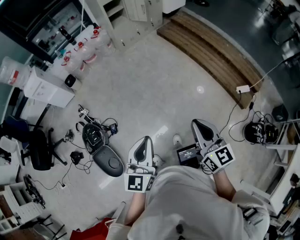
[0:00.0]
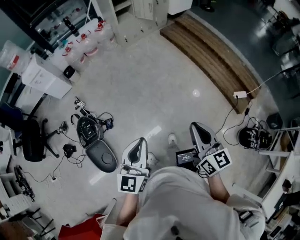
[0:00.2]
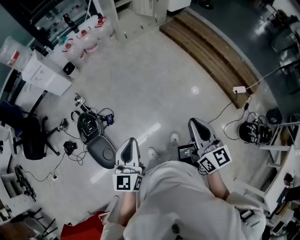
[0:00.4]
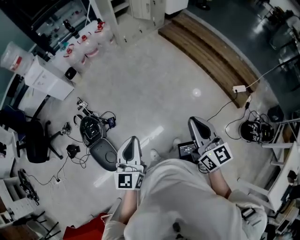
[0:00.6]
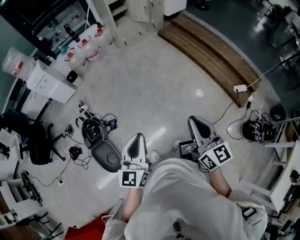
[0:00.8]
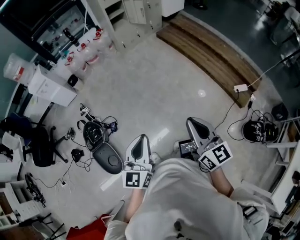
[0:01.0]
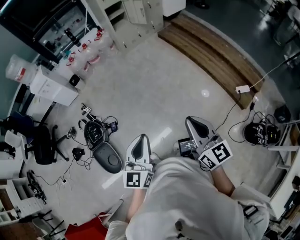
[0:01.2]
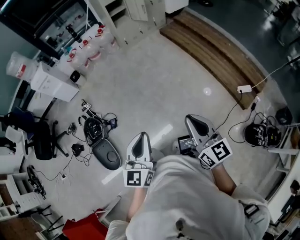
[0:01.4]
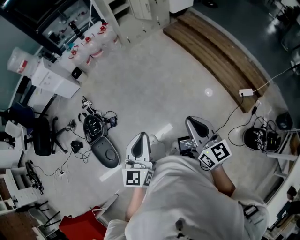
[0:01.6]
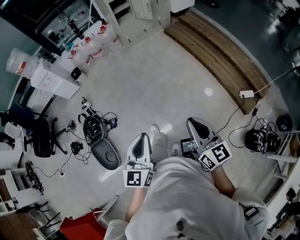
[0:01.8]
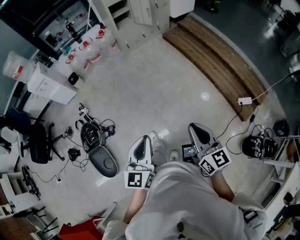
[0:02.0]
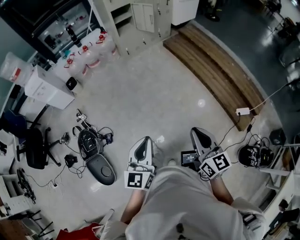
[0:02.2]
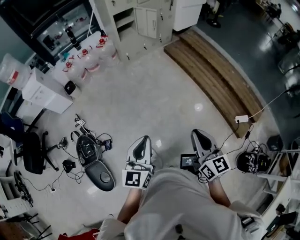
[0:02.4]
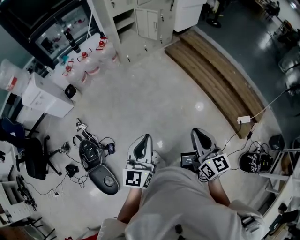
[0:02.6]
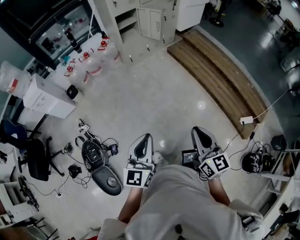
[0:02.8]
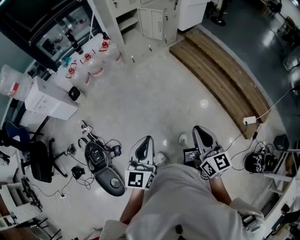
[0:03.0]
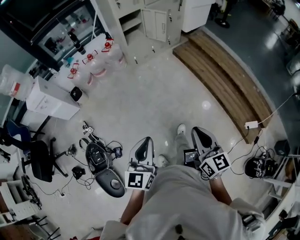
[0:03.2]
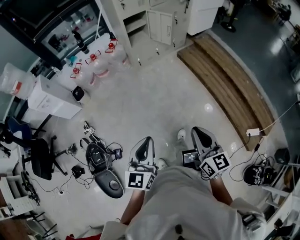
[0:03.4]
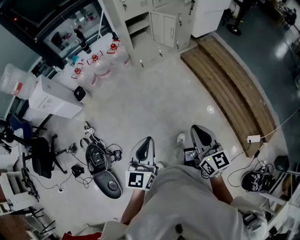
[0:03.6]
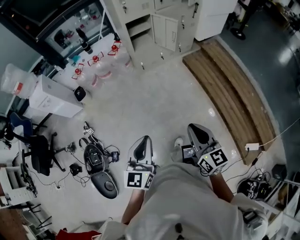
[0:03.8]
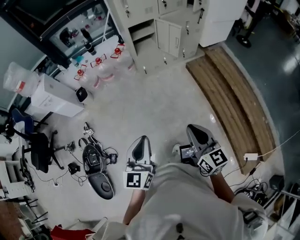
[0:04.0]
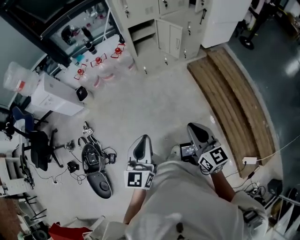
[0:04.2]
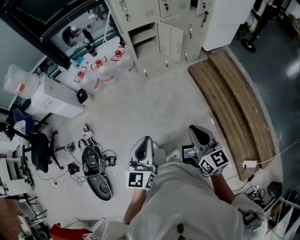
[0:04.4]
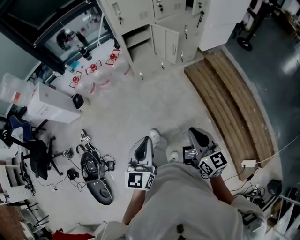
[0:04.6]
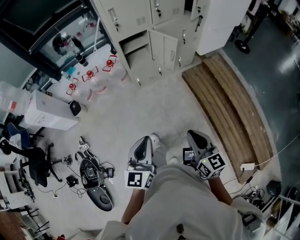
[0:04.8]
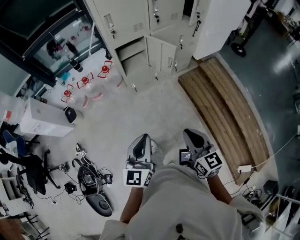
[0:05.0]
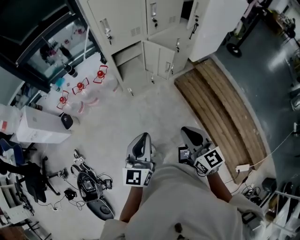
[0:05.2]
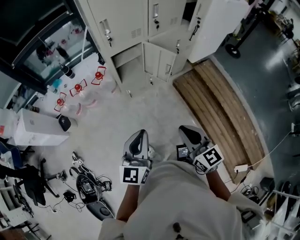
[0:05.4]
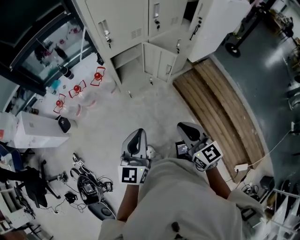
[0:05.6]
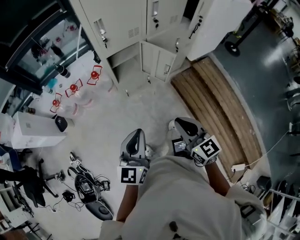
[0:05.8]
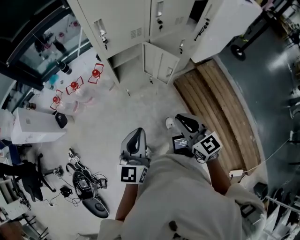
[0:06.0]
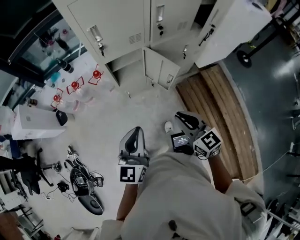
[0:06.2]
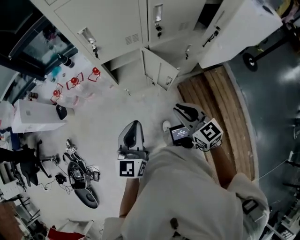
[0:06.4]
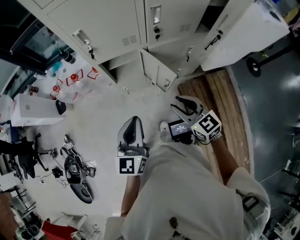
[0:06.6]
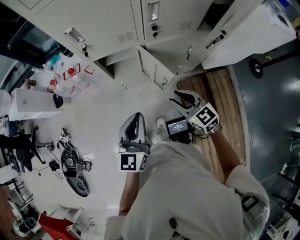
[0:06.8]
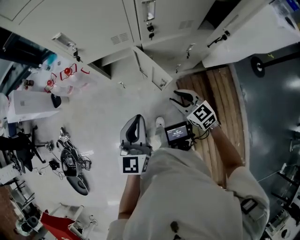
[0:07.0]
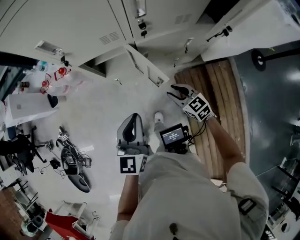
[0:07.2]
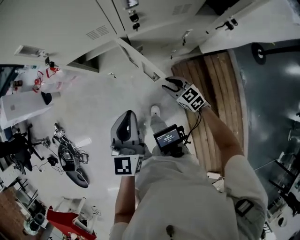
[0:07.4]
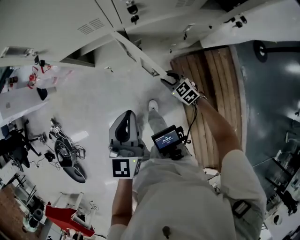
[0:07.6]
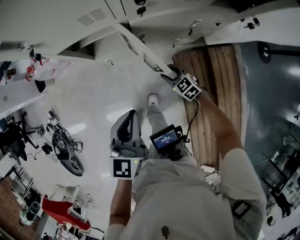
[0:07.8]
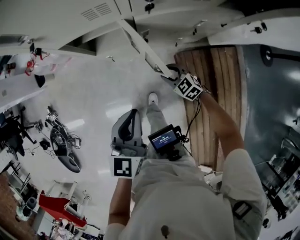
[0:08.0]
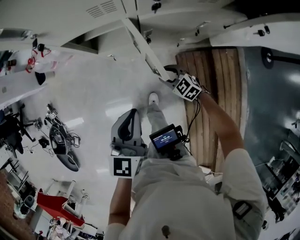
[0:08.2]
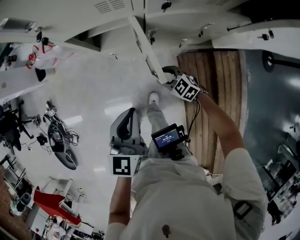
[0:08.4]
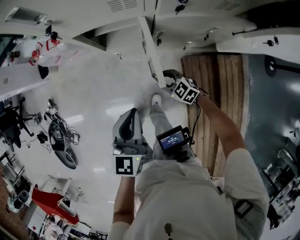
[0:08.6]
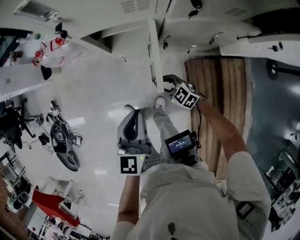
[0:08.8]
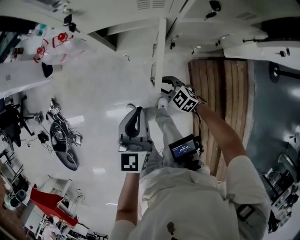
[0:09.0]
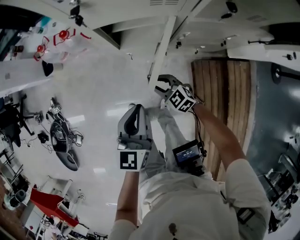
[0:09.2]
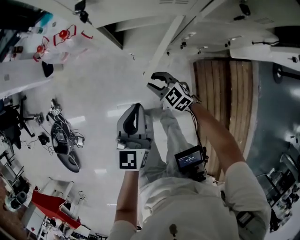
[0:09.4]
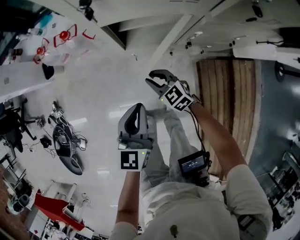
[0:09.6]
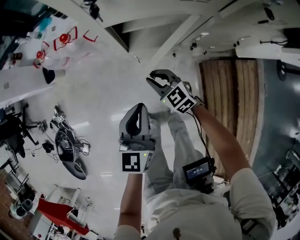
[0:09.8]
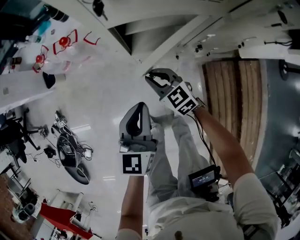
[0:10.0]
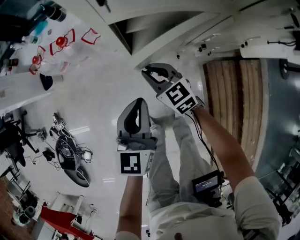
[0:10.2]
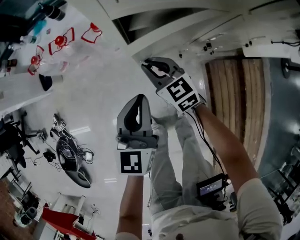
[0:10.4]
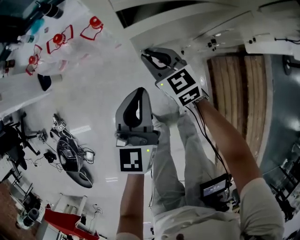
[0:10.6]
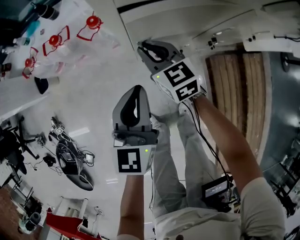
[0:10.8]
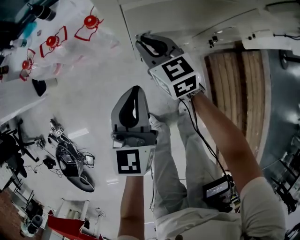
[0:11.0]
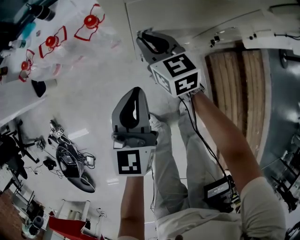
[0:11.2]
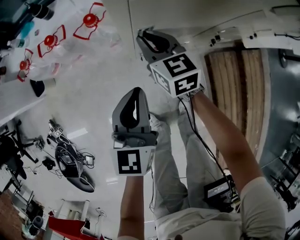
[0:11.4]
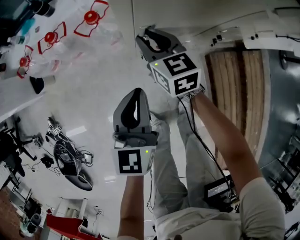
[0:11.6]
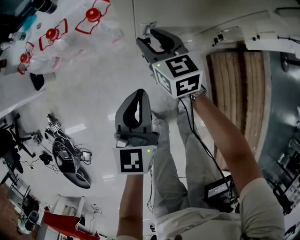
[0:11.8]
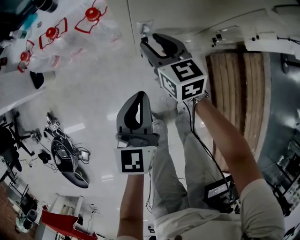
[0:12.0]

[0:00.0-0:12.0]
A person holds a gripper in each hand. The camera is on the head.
0:00.0 to 0:01.6: The right gripper moves to the right, approximately 5 cm; the left gripper moves roughly 15 cm to the left and comes back.
0:01.6 to 0:03.0: The two grippers go some 30 cm forward.
0:03.0 to 0:04.4: The grippers both shift forward and to the right by about 30 cm.
0:04.4 to 0:06.0: The grippers both shift forward by some 35 cm.
0:06.0 to 0:07.6: The left gripper travels to the right, forward and downward by about 30 cm, while the right gripper heads downward, forward and to the right, covering approximately 50 cm, turns by some 40 degrees, and opens.
0:07.6 to 0:09.0: The left gripper moves to the left and downward, some 10 cm, while the right gripper shifts some 15 cm to the left.
0:09.0 to 0:10.4: The right gripper travels forward and to the left by roughly 25 cm, and rotates about 30 degrees, while the left gripper is displaced forward, downward and to the left by some 20 cm.
0:10.4 to 0:12.0: The left gripper moves downward, about 5 cm, while the right gripper opens up.

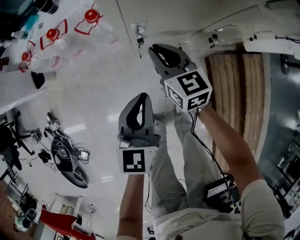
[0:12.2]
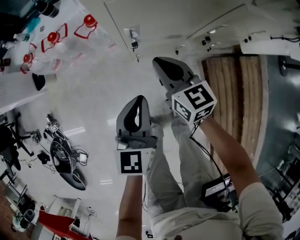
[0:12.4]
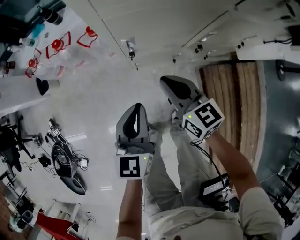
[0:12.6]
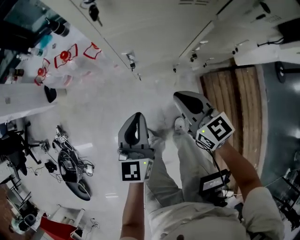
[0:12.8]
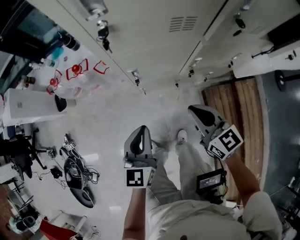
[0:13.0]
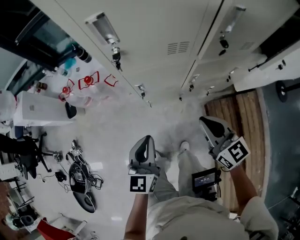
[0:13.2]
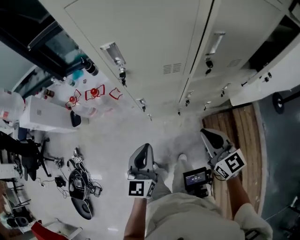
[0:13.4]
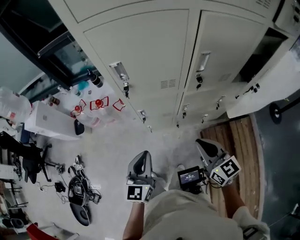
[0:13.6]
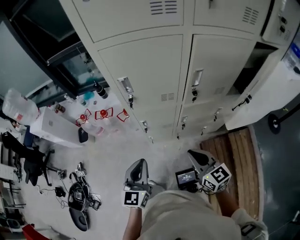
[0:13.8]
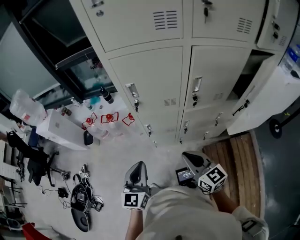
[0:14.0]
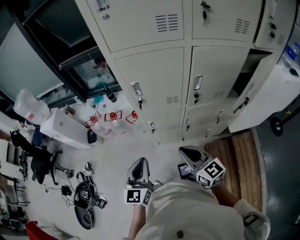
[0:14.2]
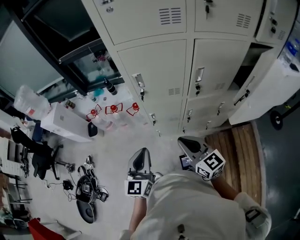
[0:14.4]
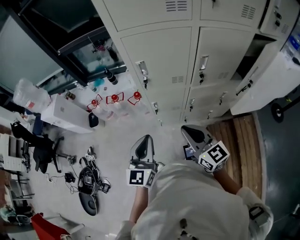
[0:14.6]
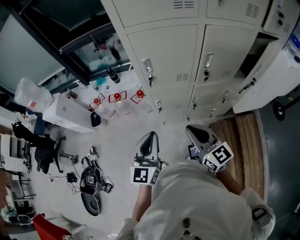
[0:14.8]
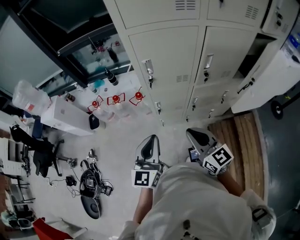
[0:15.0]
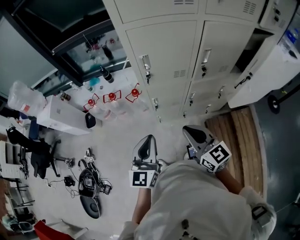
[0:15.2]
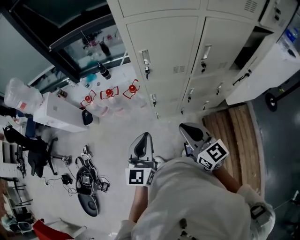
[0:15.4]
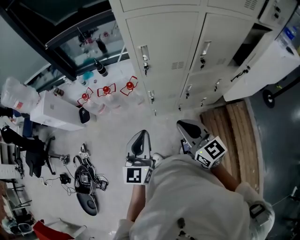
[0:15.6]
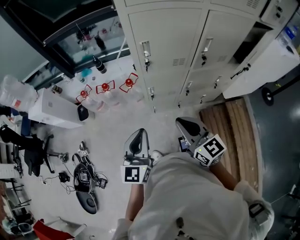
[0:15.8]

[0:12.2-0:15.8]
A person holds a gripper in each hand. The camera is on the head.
0:12.2 to 0:14.0: The two grippers go about 40 cm upward and backward. The right gripper changes its angle by some 20 degrees.
0:14.0 to 0:15.8: The right gripper travels to the left by some 15 cm. The left gripper goes roughly 10 cm to the left.

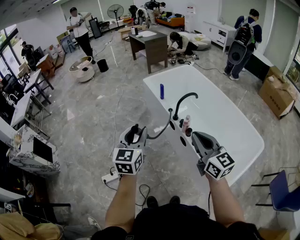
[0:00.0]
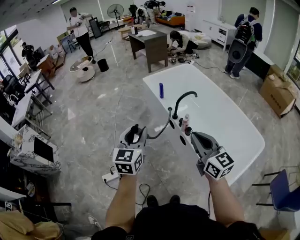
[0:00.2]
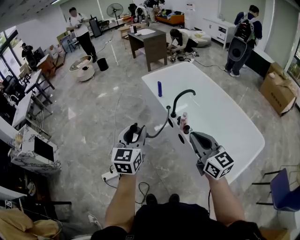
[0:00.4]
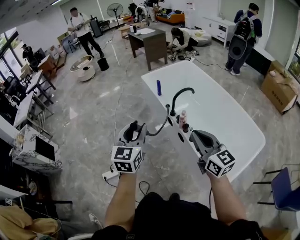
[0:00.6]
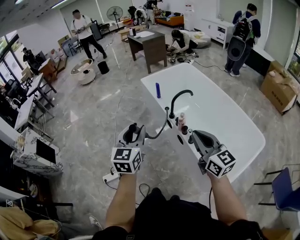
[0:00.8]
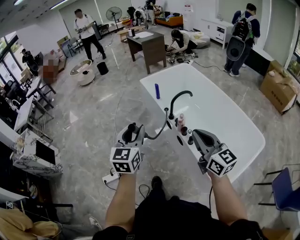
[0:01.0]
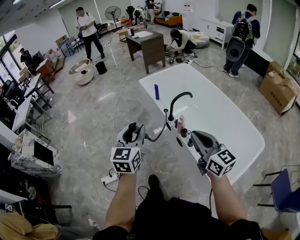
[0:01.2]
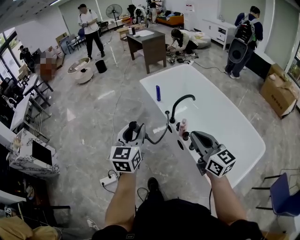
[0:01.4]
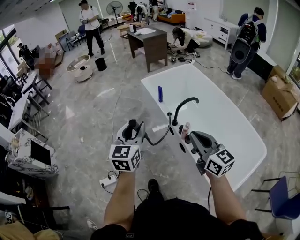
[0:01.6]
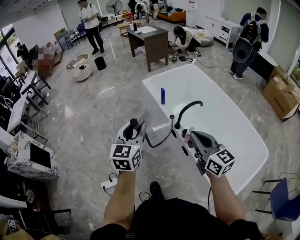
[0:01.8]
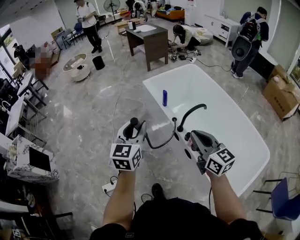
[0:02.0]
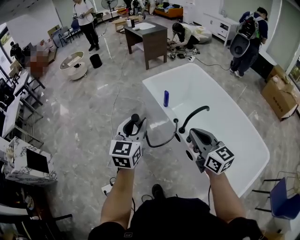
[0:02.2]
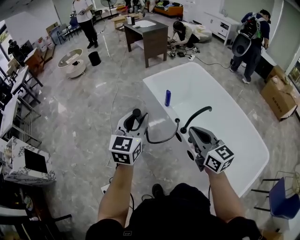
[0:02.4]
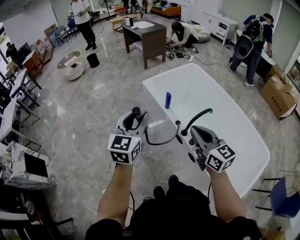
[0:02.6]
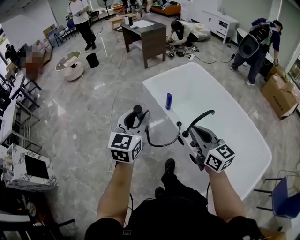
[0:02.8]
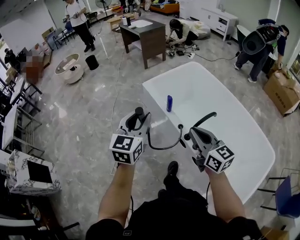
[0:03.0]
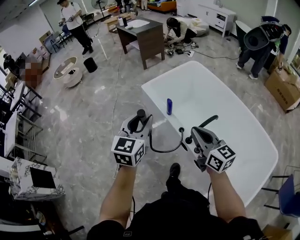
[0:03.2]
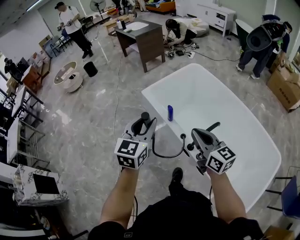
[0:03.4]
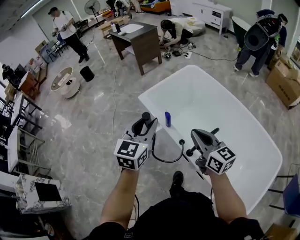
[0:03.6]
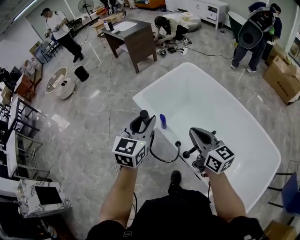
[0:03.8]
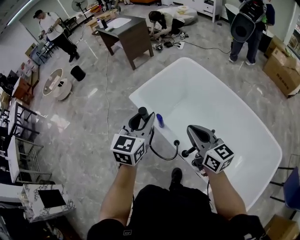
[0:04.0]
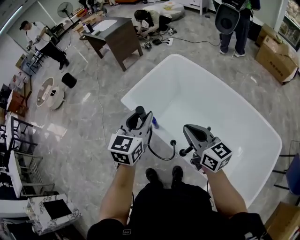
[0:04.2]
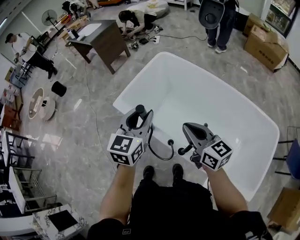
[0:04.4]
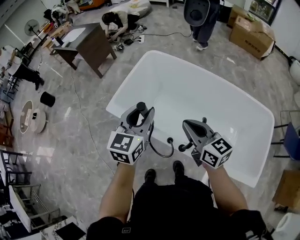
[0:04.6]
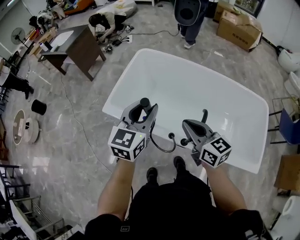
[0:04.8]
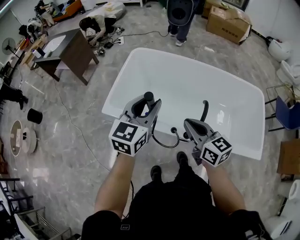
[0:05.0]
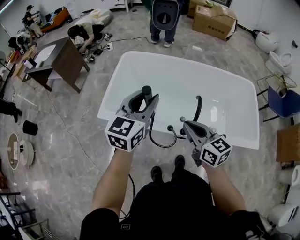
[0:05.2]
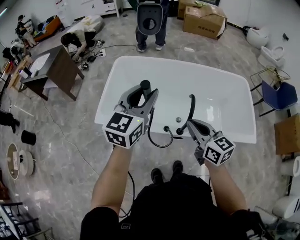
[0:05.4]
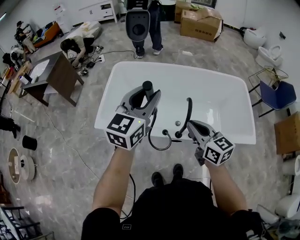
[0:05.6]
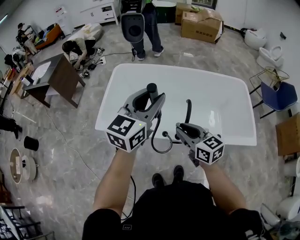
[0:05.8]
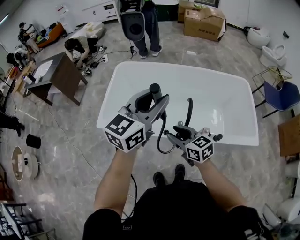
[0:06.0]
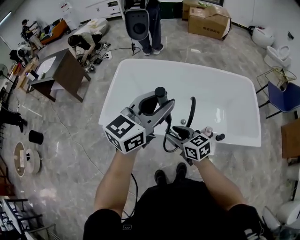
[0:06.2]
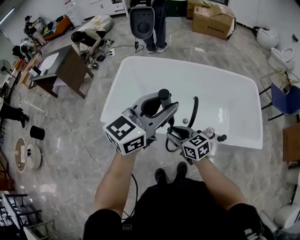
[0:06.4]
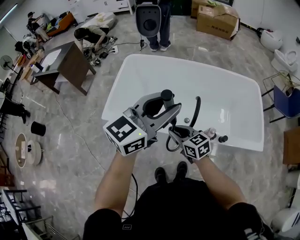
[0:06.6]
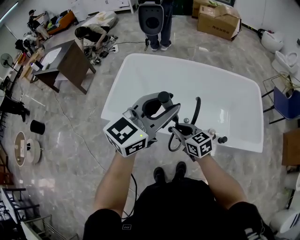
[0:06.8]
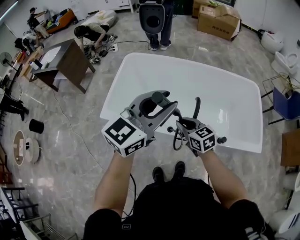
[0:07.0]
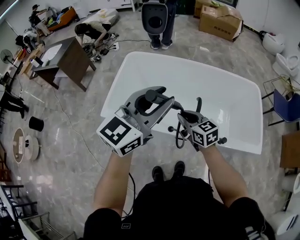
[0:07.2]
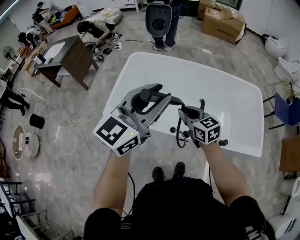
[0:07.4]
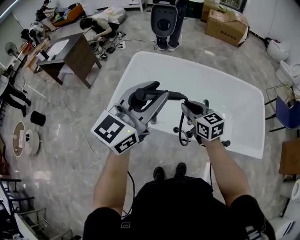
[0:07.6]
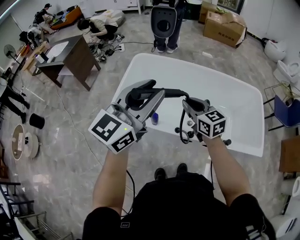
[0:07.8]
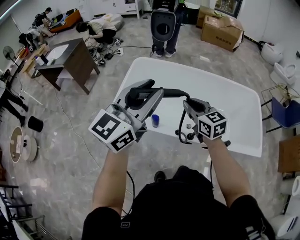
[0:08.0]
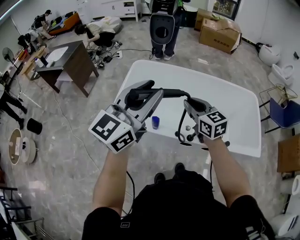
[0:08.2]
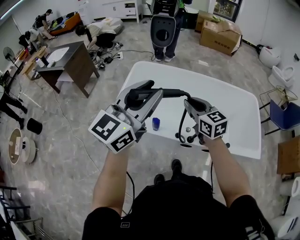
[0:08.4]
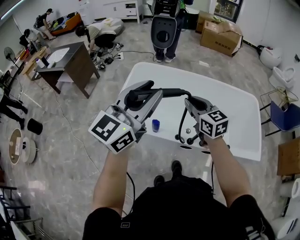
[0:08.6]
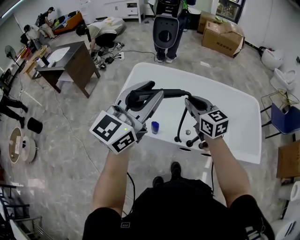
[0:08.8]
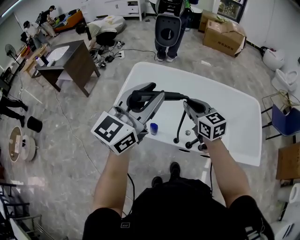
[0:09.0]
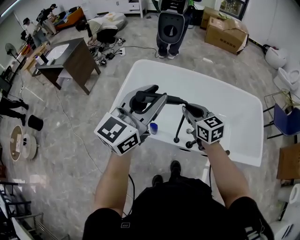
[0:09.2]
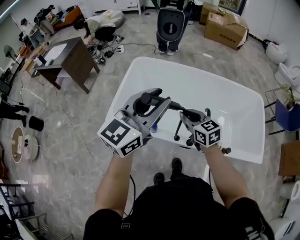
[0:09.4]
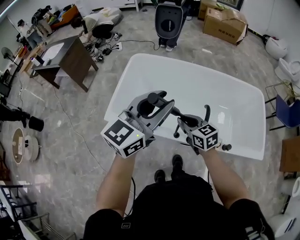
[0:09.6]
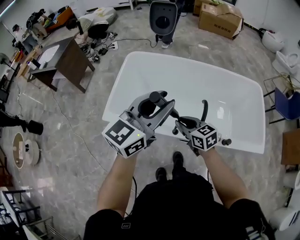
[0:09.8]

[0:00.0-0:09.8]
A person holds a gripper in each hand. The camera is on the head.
0:00.0 to 0:01.4: The left gripper moves roughly 5 cm. Meanwhile the right gripper ends up roughly 5 cm from where it was.
0:01.4 to 0:02.8: The left gripper shifts approximately 25 cm forward; the right gripper travels forward and to the left by some 25 cm.
0:02.8 to 0:04.2: The left gripper moves forward and to the right, some 25 cm. The right gripper moves forward, some 20 cm.
0:04.2 to 0:05.6: The left gripper shifts about 10 cm upward, and swivels about 50 degrees; the right gripper moves about 10 cm, and swivels roughly 40 degrees.
0:05.6 to 0:07.0: The right gripper moves downward, some 10 cm, and opens, then closes again; the left gripper shifts by roughly 5 cm.
0:07.0 to 0:08.4: The right gripper is displaced upward, to the left and forward by approximately 15 cm. The left gripper shifts about 15 cm to the left and upward.
0:08.4 to 0:09.8: The left gripper moves to the right and downward, roughly 10 cm; the right gripper is displaced downward by about 15 cm.
